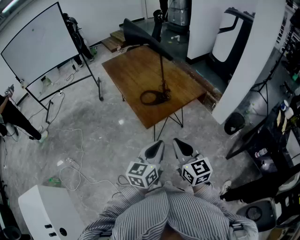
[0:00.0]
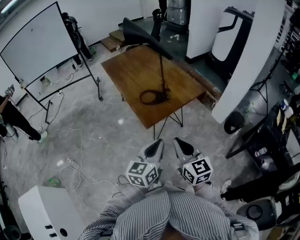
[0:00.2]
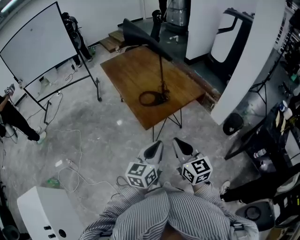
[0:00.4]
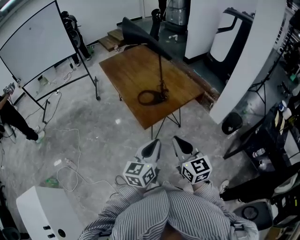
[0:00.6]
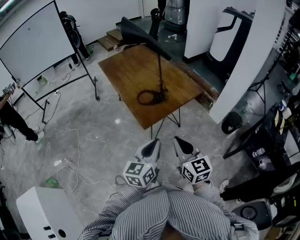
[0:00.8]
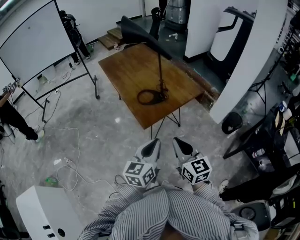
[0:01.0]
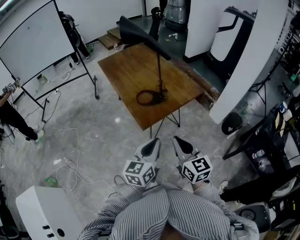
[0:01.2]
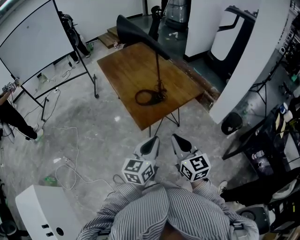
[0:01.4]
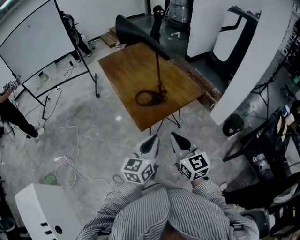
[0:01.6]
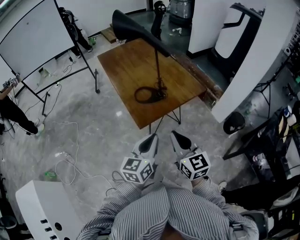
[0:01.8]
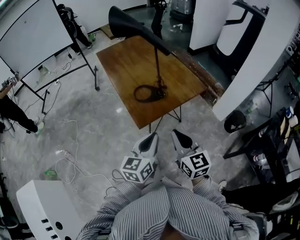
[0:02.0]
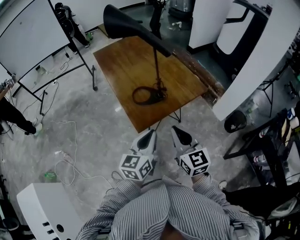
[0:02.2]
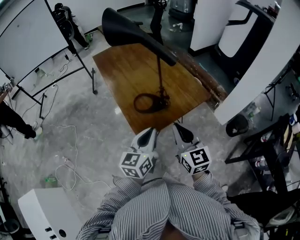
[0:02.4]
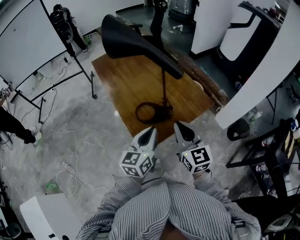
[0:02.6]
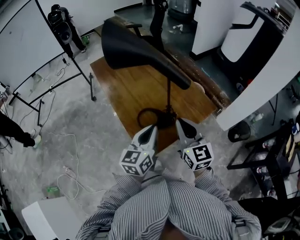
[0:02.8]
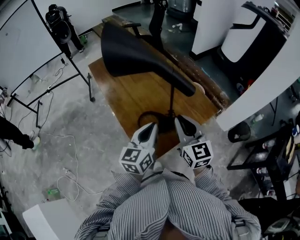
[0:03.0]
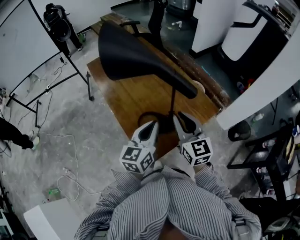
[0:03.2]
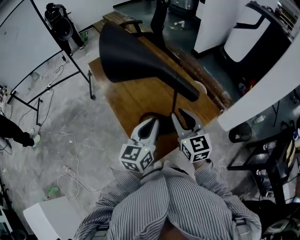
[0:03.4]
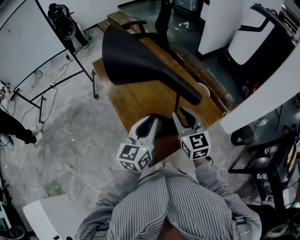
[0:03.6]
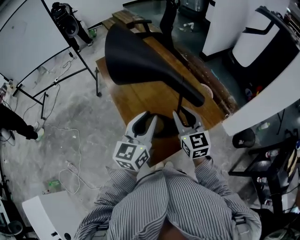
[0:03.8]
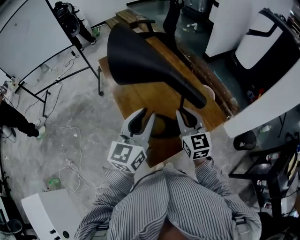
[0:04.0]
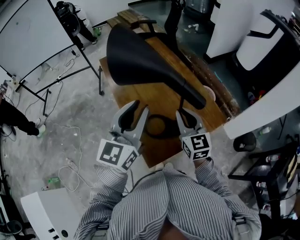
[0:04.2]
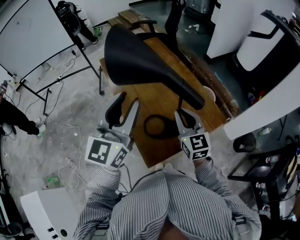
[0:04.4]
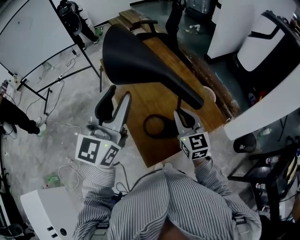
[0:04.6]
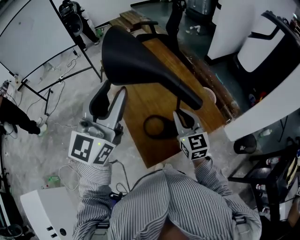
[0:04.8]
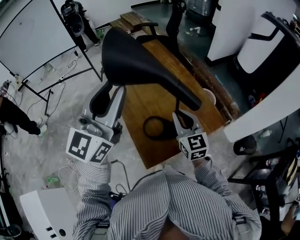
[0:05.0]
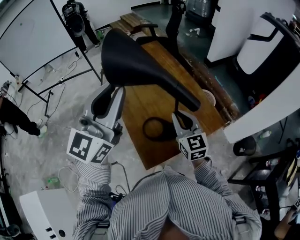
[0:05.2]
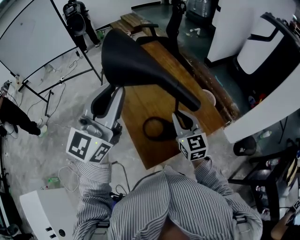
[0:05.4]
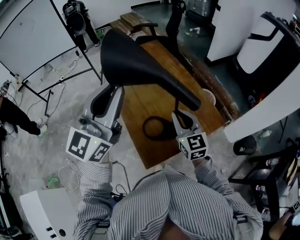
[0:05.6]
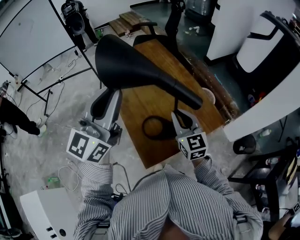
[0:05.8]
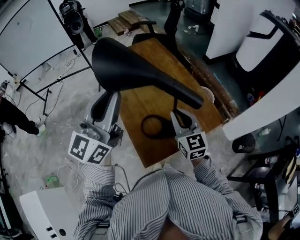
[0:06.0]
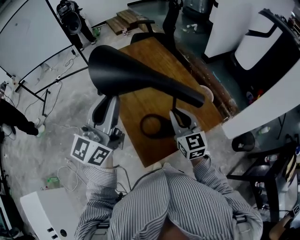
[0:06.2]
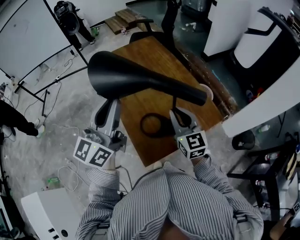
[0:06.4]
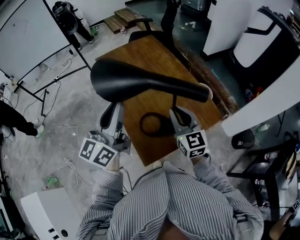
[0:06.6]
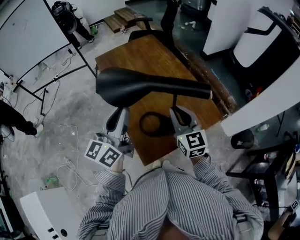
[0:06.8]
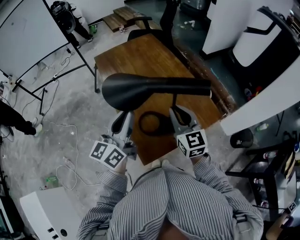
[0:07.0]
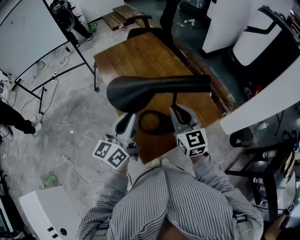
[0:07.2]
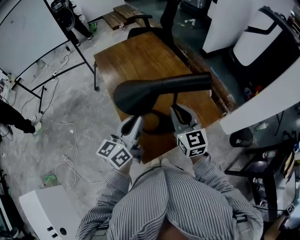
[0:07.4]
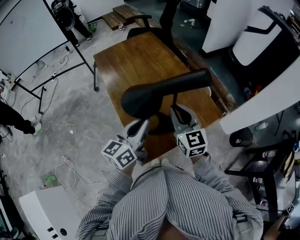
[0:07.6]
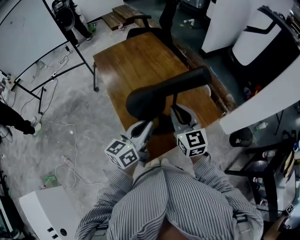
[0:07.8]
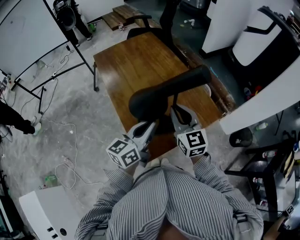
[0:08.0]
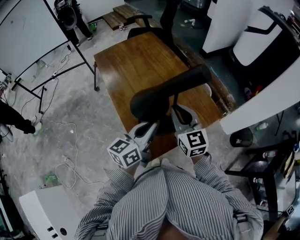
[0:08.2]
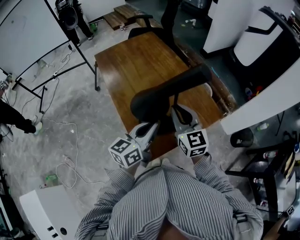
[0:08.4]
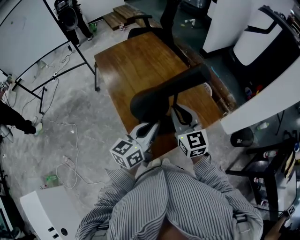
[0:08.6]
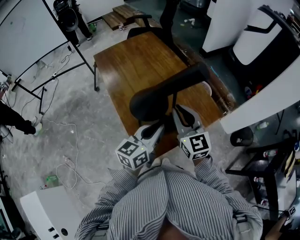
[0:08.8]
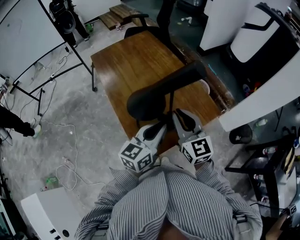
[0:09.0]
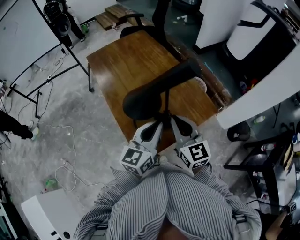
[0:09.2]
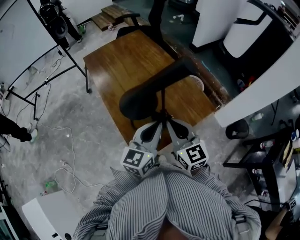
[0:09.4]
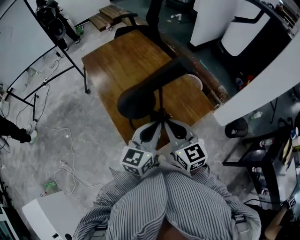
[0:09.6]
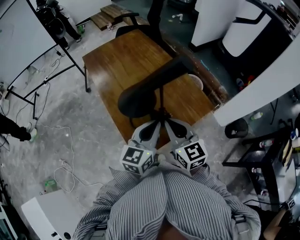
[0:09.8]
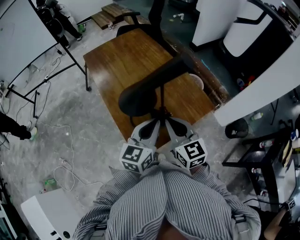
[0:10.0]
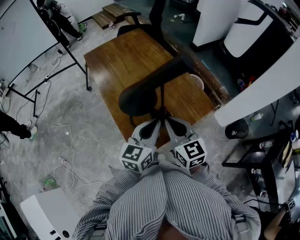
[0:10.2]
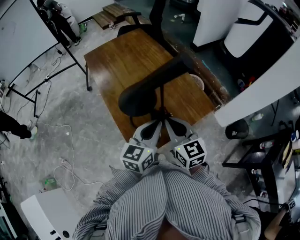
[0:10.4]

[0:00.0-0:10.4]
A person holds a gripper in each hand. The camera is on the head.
0:00.0 to 0:01.4: Both grippers travel together forward, about 5 cm.
0:01.4 to 0:03.0: The grippers both shift forward by some 30 cm.
0:03.0 to 0:04.4: The left gripper moves upward and to the left, approximately 20 cm, swivels approximately 30 degrees, and opens its fingers, while the right gripper shifts some 5 cm forward.
0:06.0 to 0:07.4: The left gripper shifts about 20 cm downward, and rotates roughly 30 degrees.
0:07.4 to 0:09.0: The left gripper moves to the right, roughly 10 cm.
0:09.0 to 0:10.4: The right gripper moves about 5 cm.

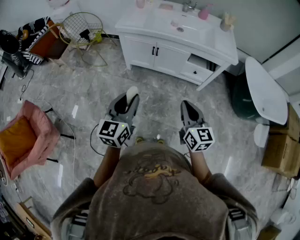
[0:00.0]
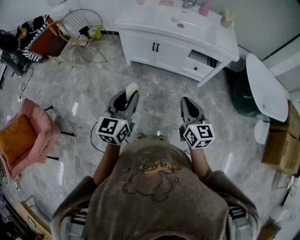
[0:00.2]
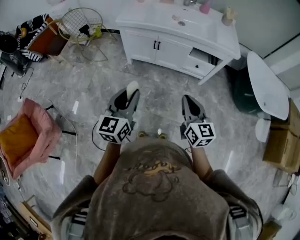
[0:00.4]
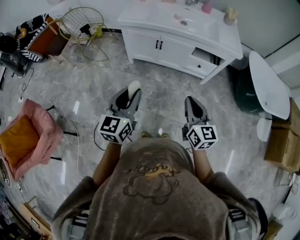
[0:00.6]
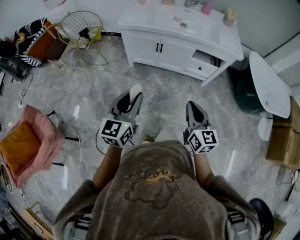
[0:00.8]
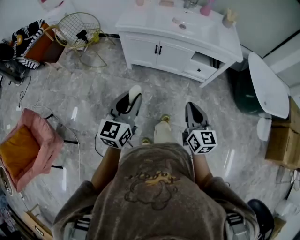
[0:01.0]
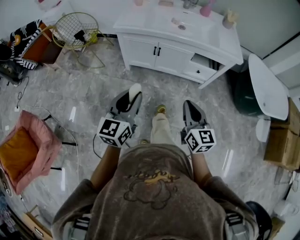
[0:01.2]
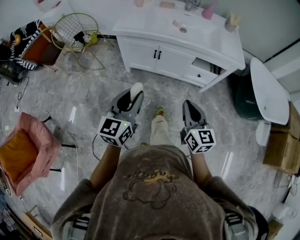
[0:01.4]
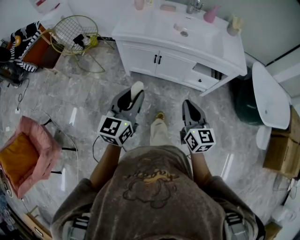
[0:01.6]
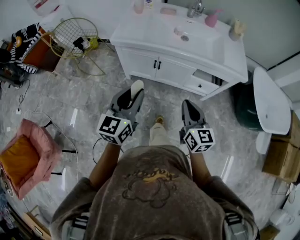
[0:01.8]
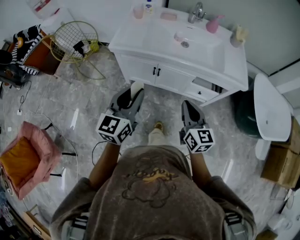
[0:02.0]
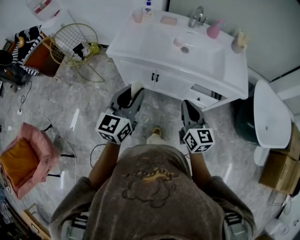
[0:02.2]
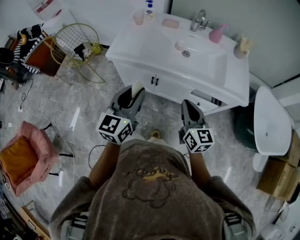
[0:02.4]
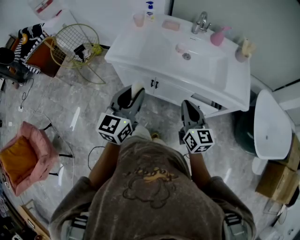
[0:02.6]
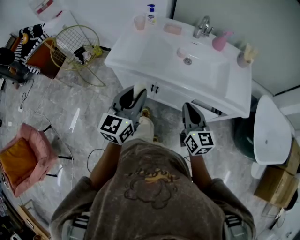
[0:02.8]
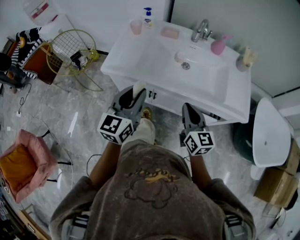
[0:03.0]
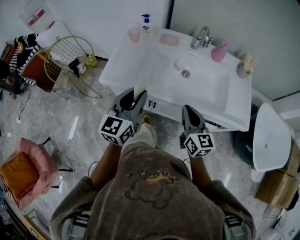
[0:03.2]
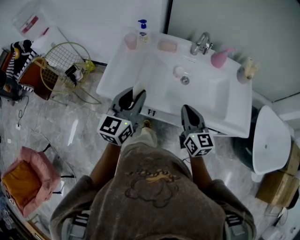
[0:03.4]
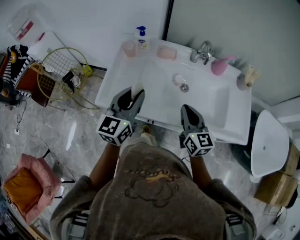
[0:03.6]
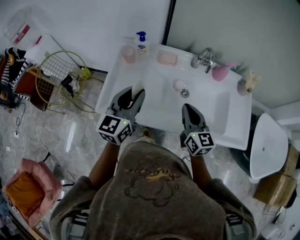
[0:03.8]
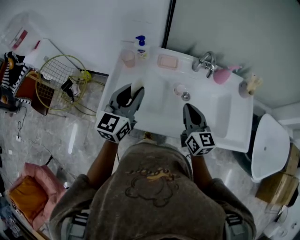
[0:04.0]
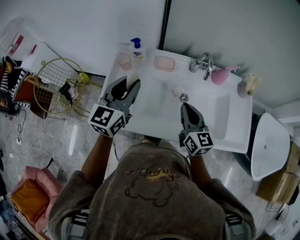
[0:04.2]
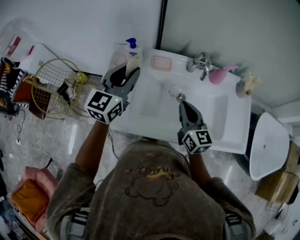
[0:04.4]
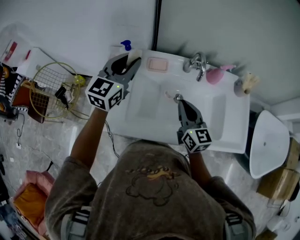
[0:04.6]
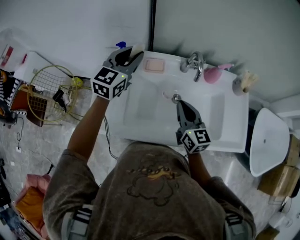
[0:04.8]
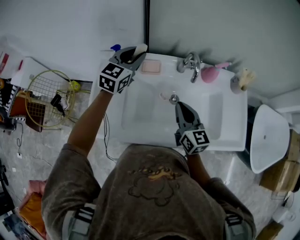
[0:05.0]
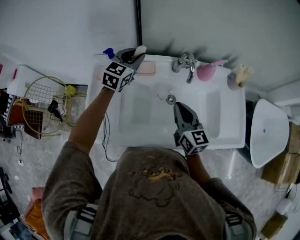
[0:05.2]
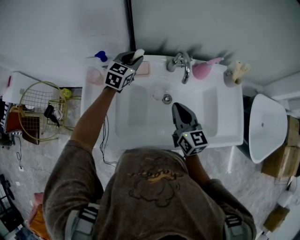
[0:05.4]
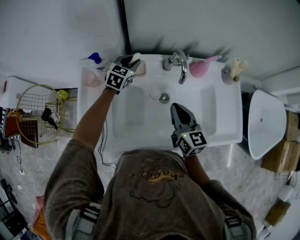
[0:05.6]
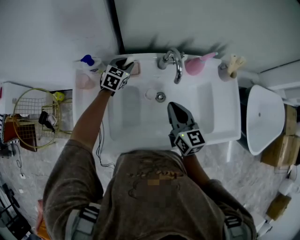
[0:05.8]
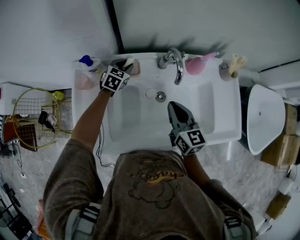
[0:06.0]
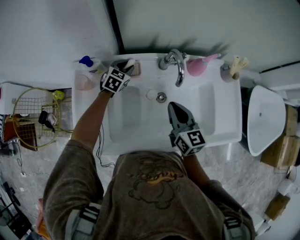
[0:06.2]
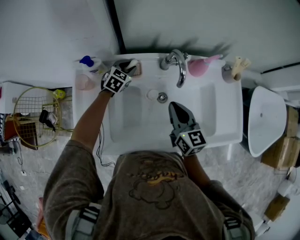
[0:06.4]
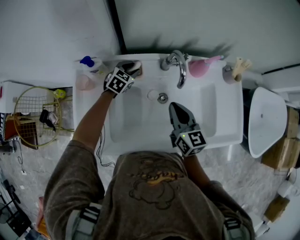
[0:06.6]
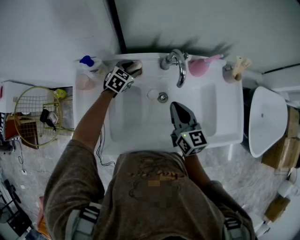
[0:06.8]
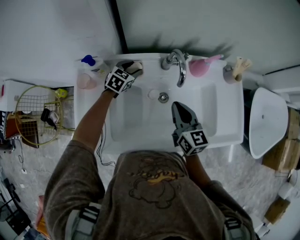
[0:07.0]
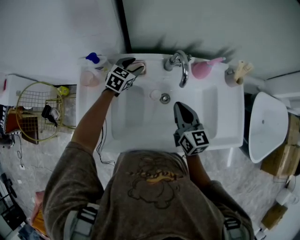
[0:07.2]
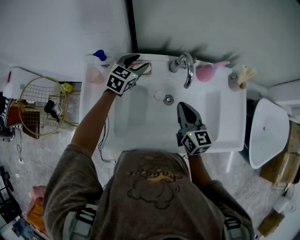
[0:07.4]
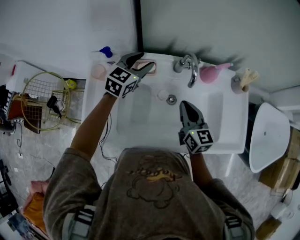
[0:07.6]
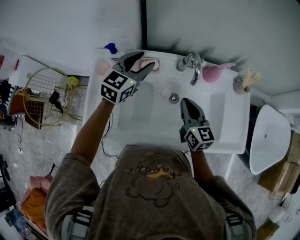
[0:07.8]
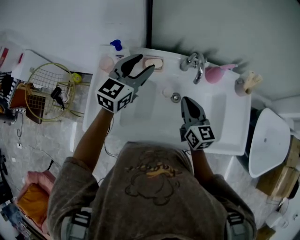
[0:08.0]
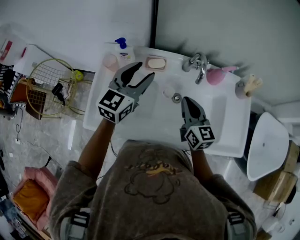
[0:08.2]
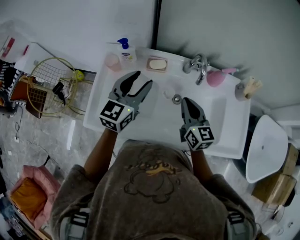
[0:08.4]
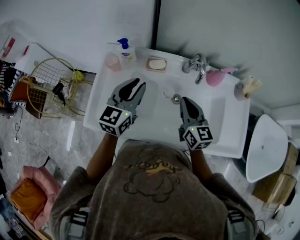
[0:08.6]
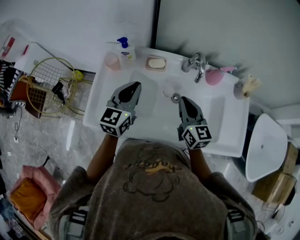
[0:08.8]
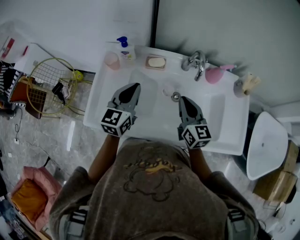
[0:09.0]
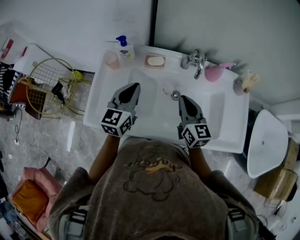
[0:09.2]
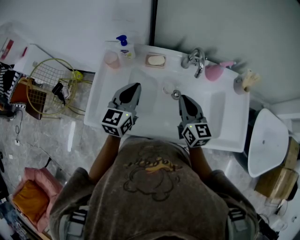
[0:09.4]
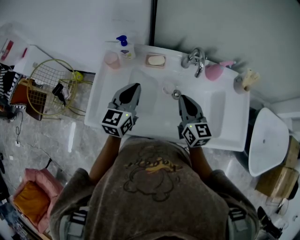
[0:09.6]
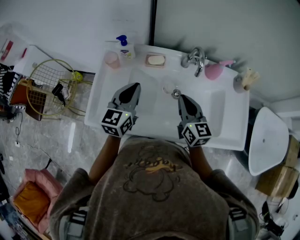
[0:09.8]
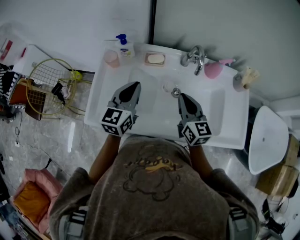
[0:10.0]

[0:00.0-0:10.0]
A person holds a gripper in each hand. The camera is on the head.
0:00.0 to 0:01.4: The left gripper shifts some 15 cm forward. The right gripper moves forward and to the left, roughly 10 cm.
0:01.4 to 0:02.8: Both grippers travel together forward, about 30 cm.
0:02.8 to 0:04.2: Both grippers travel together forward, approximately 35 cm.
0:04.2 to 0:05.8: The left gripper shifts approximately 35 cm forward and downward, and tips its fingers downward by about 30 degrees; the right gripper shifts roughly 10 cm forward and to the right.
0:05.8 to 0:07.2: The left gripper opens.
0:07.2 to 0:08.6: The right gripper changes place by some 5 cm. Meanwhile the left gripper goes approximately 30 cm backward and upward, changes its angle by some 40 degrees, and closes.
0:08.6 to 0:10.0: The left gripper closes.

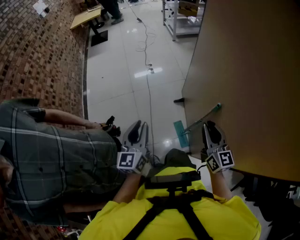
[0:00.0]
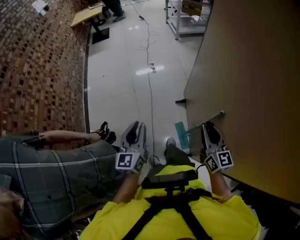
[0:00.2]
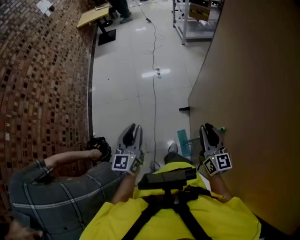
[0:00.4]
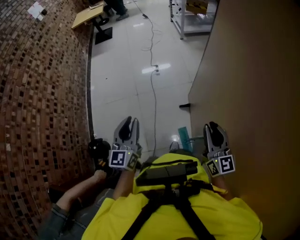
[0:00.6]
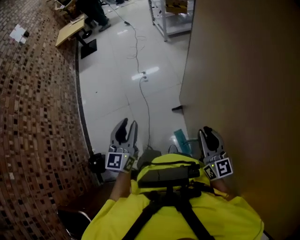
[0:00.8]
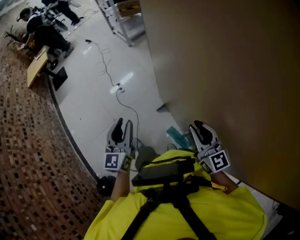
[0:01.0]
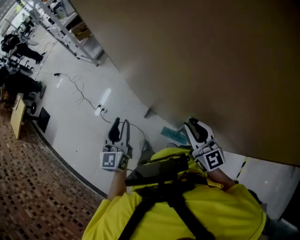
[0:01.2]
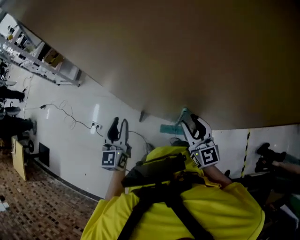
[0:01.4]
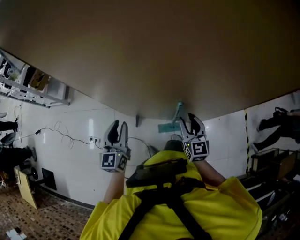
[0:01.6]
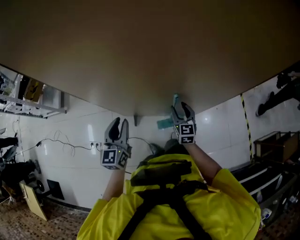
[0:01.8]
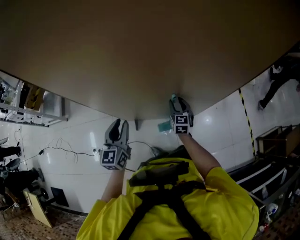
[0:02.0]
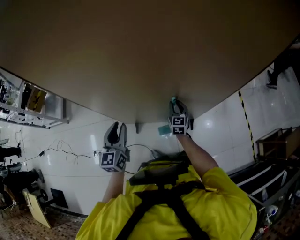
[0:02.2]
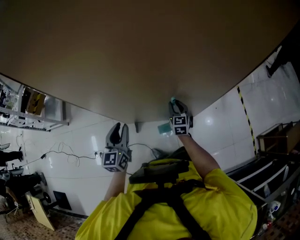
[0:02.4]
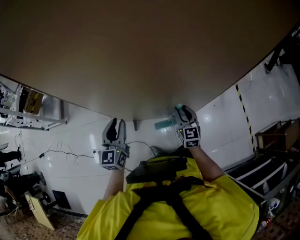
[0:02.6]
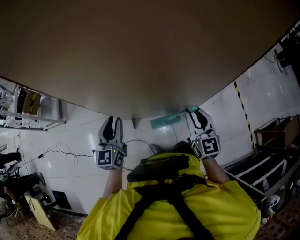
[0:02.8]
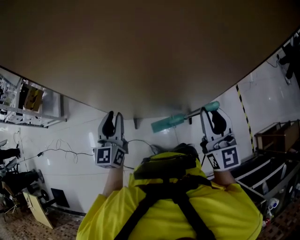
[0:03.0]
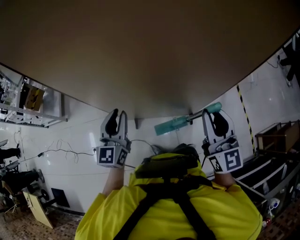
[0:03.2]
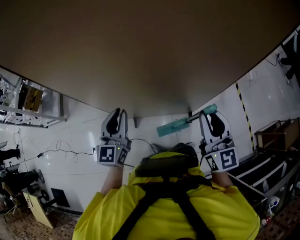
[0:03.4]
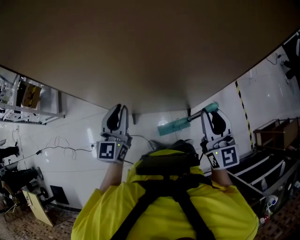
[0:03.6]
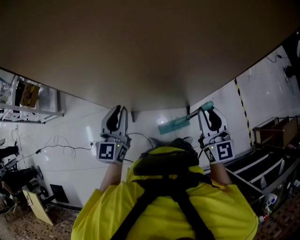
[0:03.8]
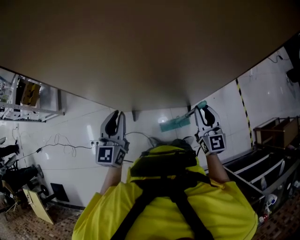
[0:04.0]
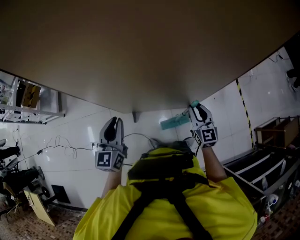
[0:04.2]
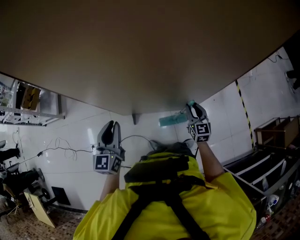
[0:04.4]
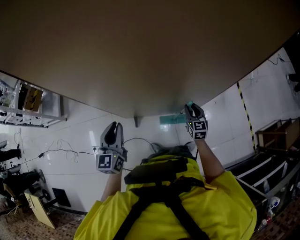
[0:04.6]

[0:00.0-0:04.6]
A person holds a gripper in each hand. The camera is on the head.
0:00.0 to 0:01.6: The right gripper moves about 20 cm, and turns by roughly 80 degrees, while the left gripper shifts by roughly 50 cm, and changes its angle by some 70 degrees.
0:01.6 to 0:03.0: The left gripper travels upward by some 5 cm. The right gripper goes roughly 20 cm upward.
0:03.0 to 0:04.6: The right gripper is displaced downward by some 30 cm, and rotates about 30 degrees, while the left gripper shifts approximately 5 cm downward.
